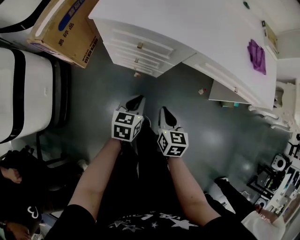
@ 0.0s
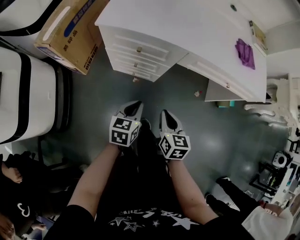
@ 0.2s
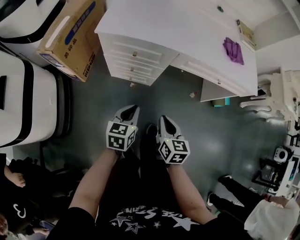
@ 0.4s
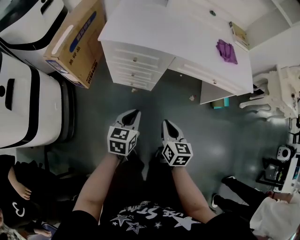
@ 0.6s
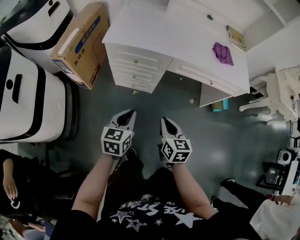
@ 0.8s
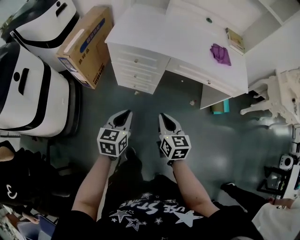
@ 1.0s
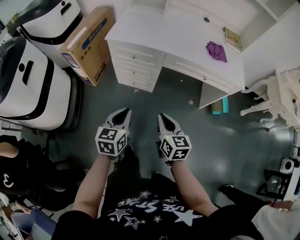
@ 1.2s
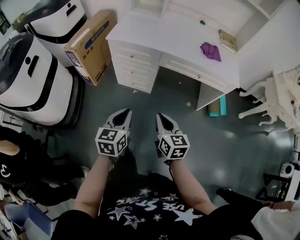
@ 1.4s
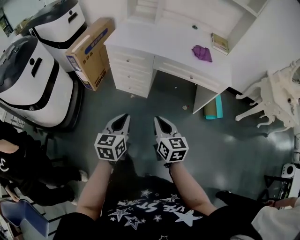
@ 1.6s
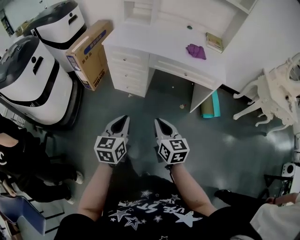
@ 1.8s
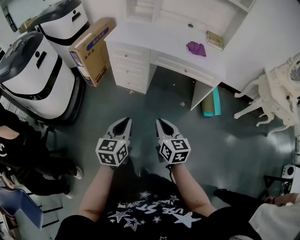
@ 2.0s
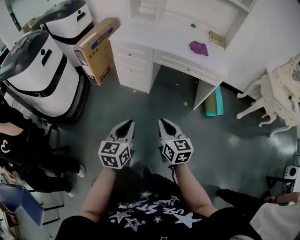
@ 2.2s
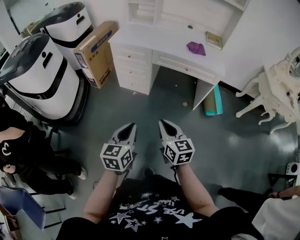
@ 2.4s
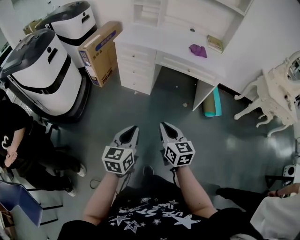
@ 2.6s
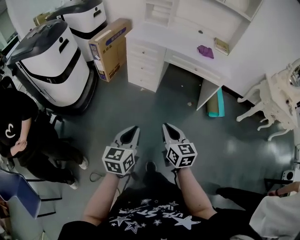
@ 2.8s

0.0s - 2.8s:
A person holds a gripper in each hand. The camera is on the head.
0.0s - 1.4s: The right gripper travels upward and backward by about 30 cm. Meanwhile the left gripper heads backward and upward, covering roughly 35 cm.
1.4s - 2.8s: Both grippers travel together backward, about 30 cm.

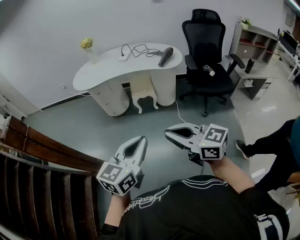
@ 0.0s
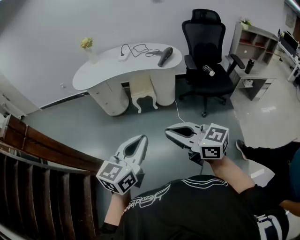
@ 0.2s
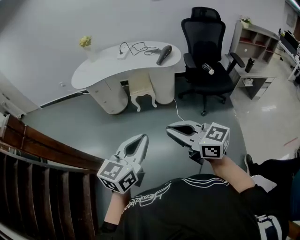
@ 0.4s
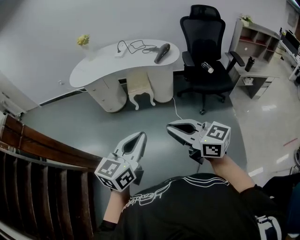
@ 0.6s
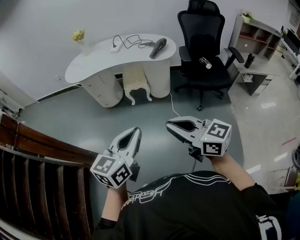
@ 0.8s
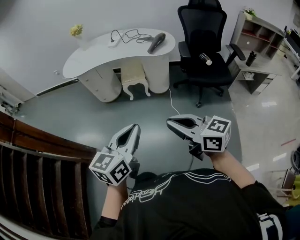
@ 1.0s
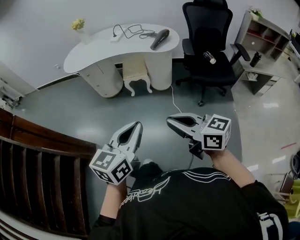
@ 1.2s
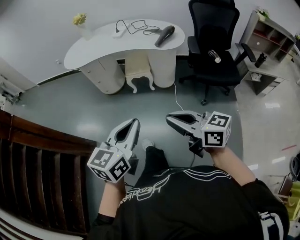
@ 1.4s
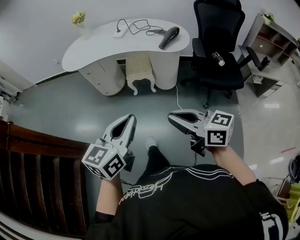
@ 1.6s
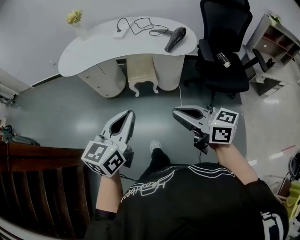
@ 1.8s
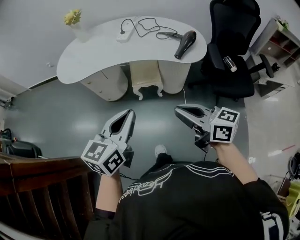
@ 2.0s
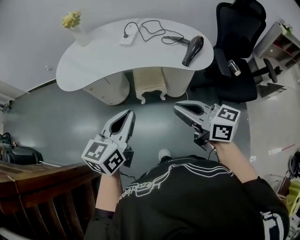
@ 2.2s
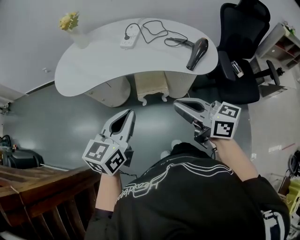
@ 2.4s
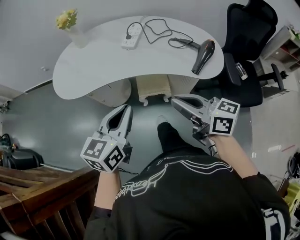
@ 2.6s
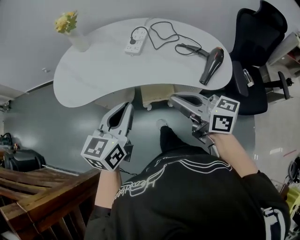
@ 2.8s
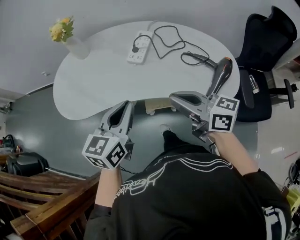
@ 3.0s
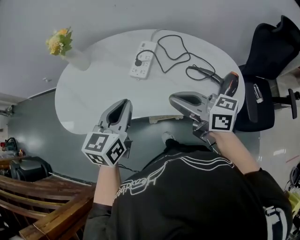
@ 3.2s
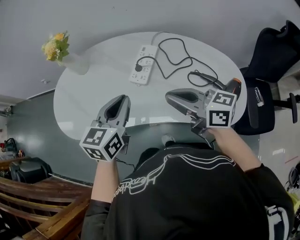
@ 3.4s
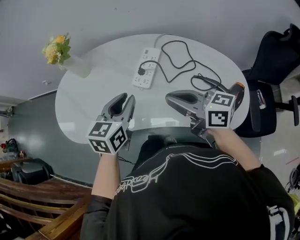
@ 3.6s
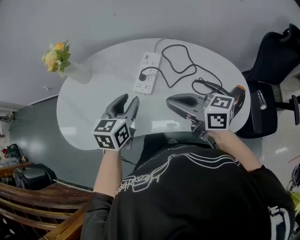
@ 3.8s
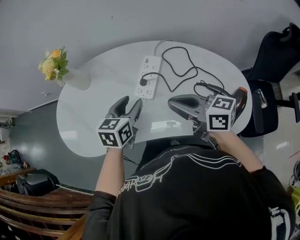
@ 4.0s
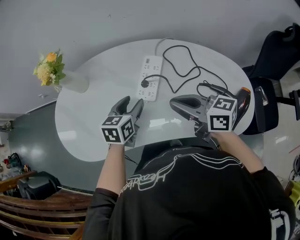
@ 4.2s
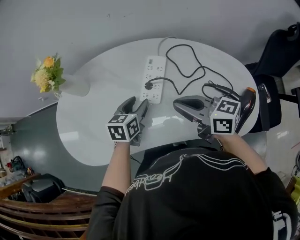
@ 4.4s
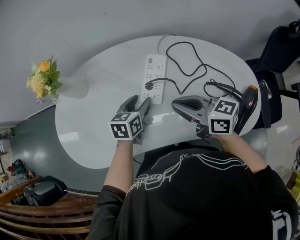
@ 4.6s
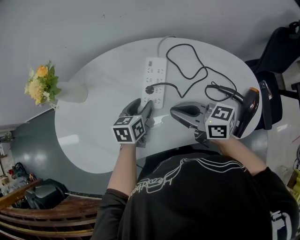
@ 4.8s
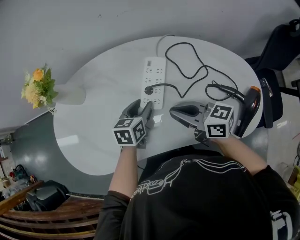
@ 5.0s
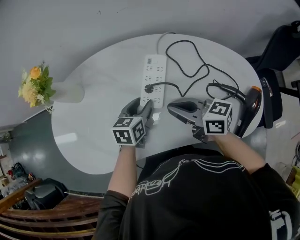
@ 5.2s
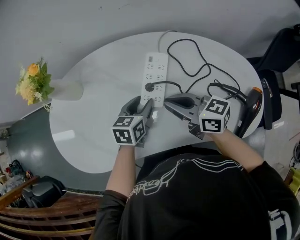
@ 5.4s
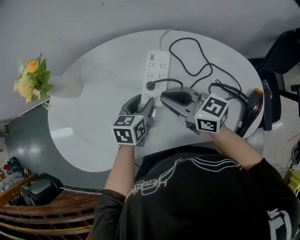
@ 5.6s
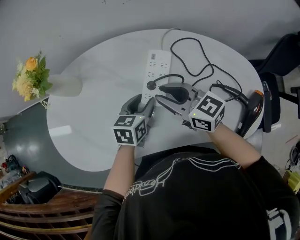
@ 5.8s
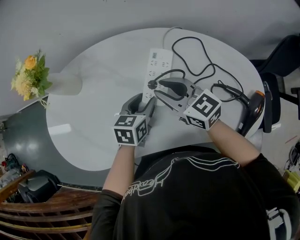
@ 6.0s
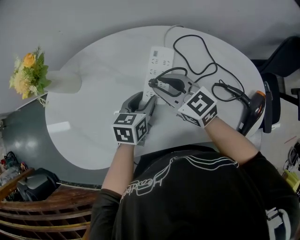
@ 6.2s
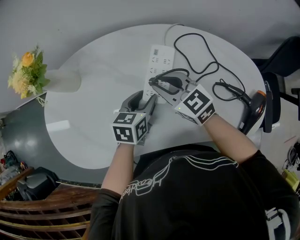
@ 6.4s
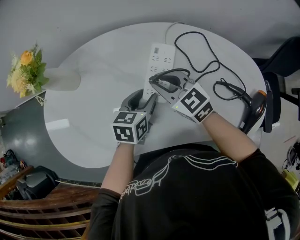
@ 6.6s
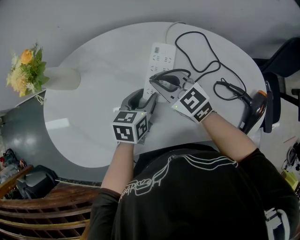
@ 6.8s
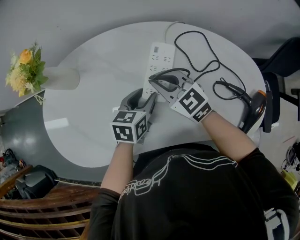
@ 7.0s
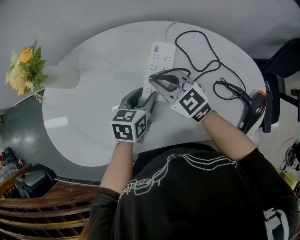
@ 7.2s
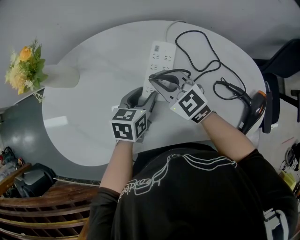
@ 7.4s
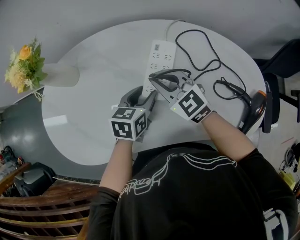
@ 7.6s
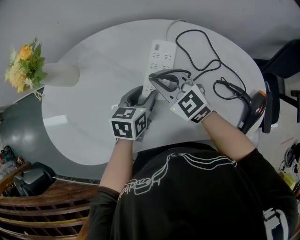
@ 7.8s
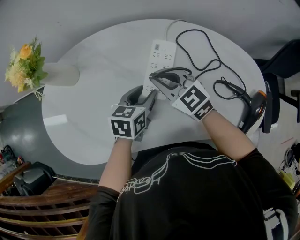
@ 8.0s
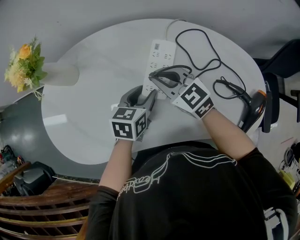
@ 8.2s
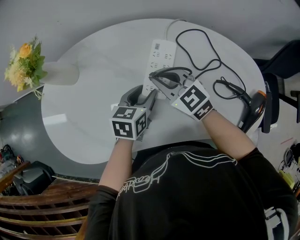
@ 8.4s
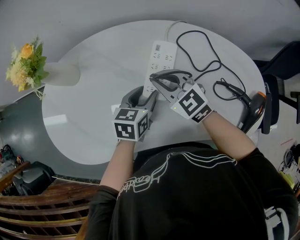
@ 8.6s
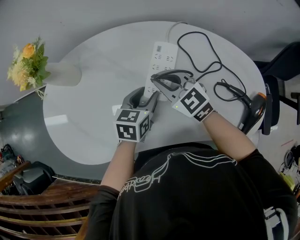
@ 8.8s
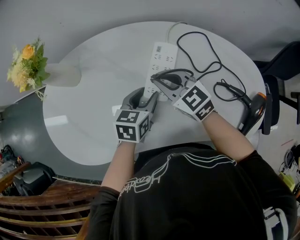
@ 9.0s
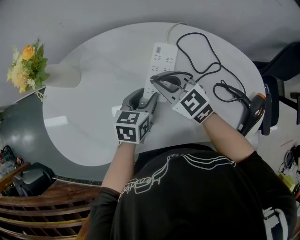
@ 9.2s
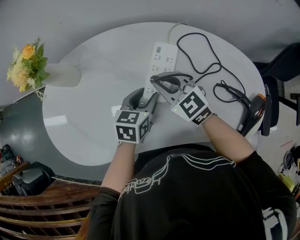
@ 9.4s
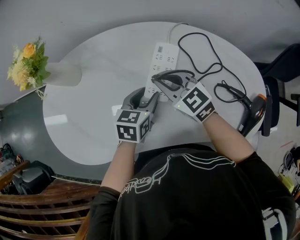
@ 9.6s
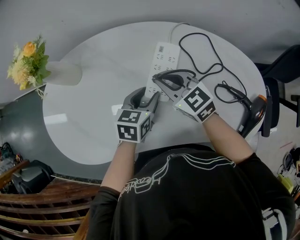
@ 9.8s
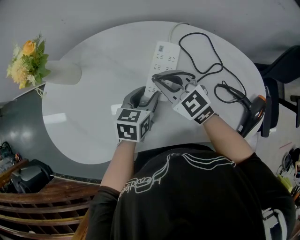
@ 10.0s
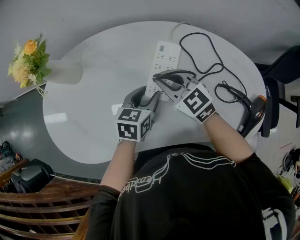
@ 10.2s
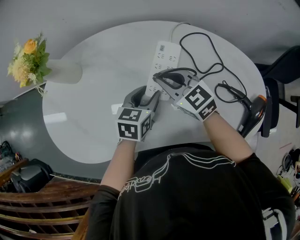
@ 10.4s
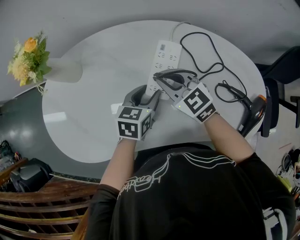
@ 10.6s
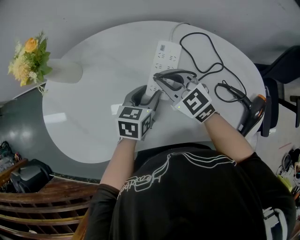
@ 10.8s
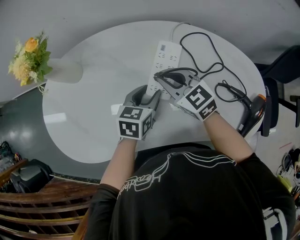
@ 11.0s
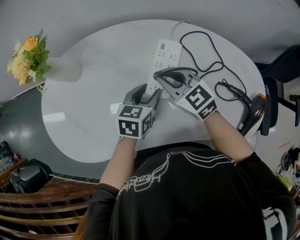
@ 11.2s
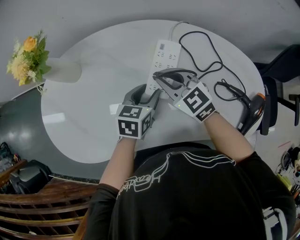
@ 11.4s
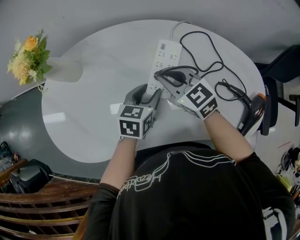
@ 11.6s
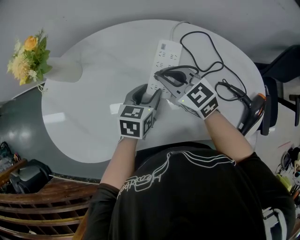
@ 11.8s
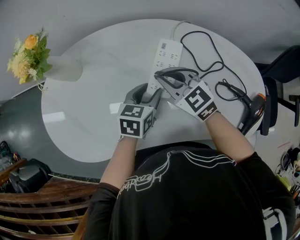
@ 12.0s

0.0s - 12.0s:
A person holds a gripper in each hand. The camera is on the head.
0.0s - 1.6s: The right gripper travels forward, to the right and downward by roughly 20 cm; the left gripper travels forward and to the right by approximately 15 cm.
1.6s - 3.0s: The pair of grippers is taken forward, approximately 60 cm.
3.0s - 4.4s: The right gripper heads forward, covering approximately 20 cm, while the left gripper shifts roughly 30 cm forward and downward, rotates roughly 20 degrees, and opens up.
4.4s - 6.0s: The right gripper heads forward, downward and to the left, covering roughly 15 cm, changes its angle by some 20 degrees, and opens its fingers.
6.0s - 7.6s: The right gripper swivels about 20 degrees.
7.6s - 12.0s: The grippers stay close to where they were, moving slightly.

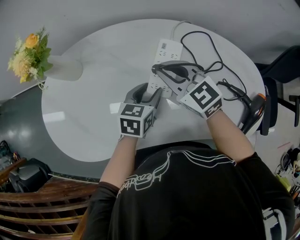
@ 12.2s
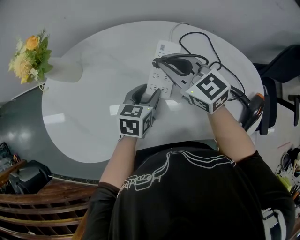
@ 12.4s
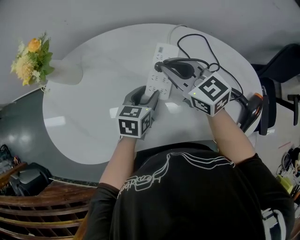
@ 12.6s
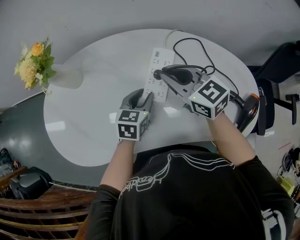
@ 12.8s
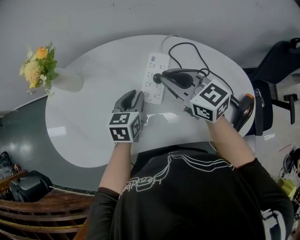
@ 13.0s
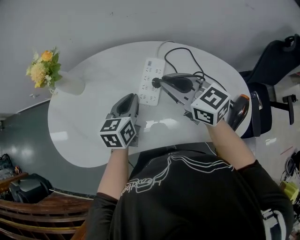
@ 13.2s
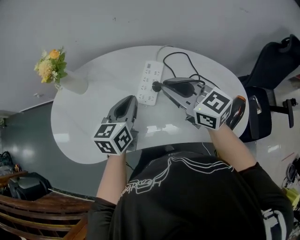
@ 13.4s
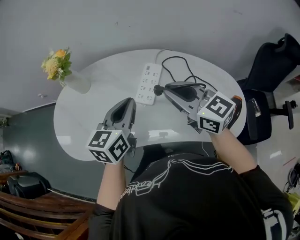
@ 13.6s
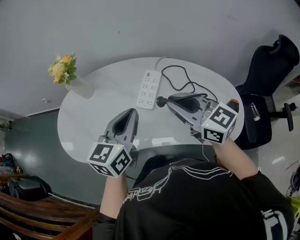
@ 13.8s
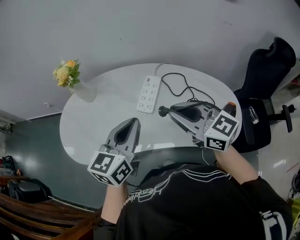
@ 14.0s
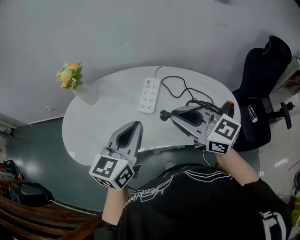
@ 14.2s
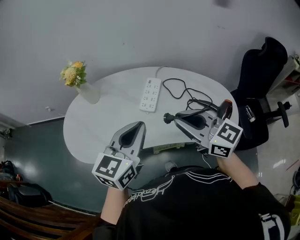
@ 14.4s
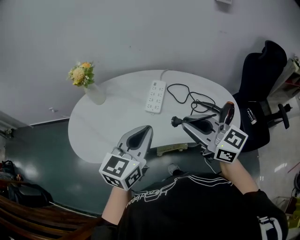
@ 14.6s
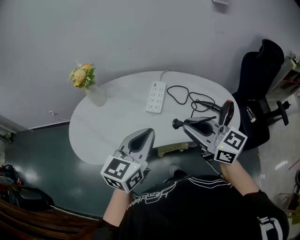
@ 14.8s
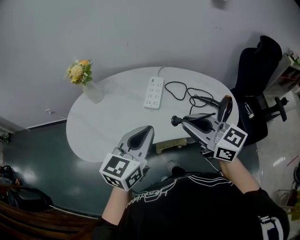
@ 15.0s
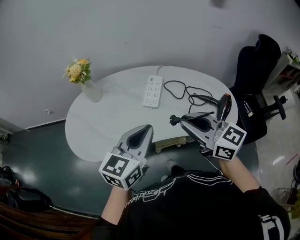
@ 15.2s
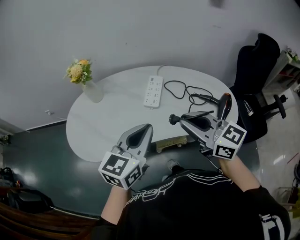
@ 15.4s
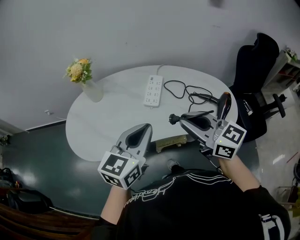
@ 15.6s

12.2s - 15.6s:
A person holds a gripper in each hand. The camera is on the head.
12.2s - 13.8s: The left gripper is displaced upward and backward by roughly 25 cm, rotates some 30 degrees, and closes up. The right gripper moves backward, upward and to the right, approximately 25 cm, and swivels approximately 20 degrees.
13.8s - 15.6s: Both grippers move backward, about 15 cm.

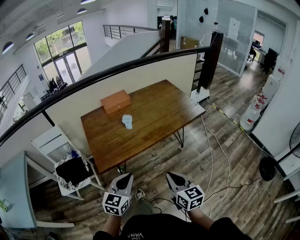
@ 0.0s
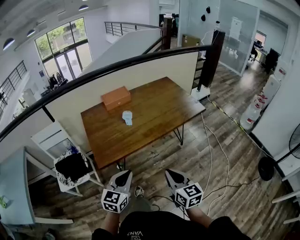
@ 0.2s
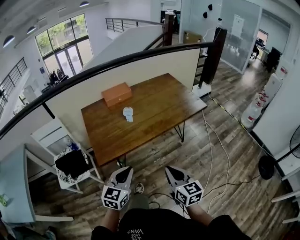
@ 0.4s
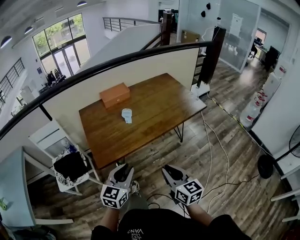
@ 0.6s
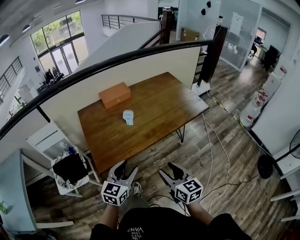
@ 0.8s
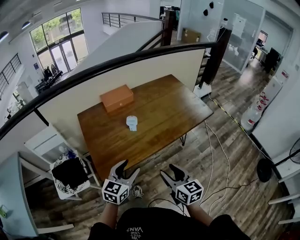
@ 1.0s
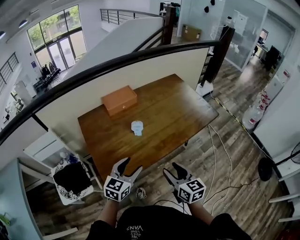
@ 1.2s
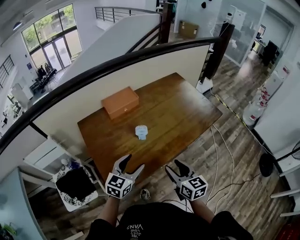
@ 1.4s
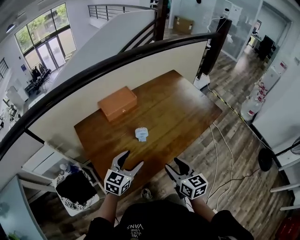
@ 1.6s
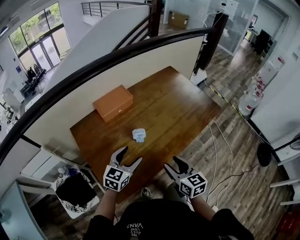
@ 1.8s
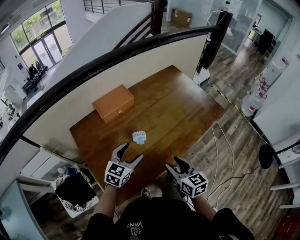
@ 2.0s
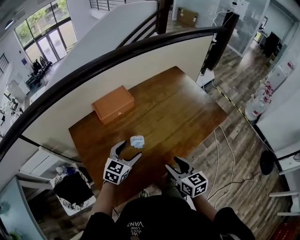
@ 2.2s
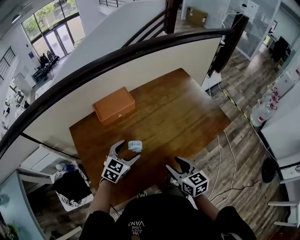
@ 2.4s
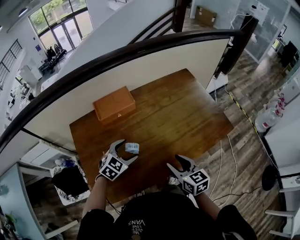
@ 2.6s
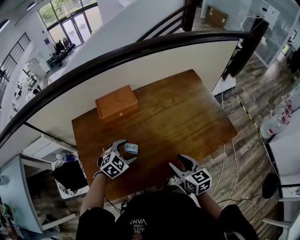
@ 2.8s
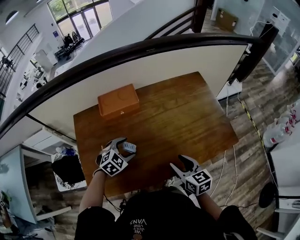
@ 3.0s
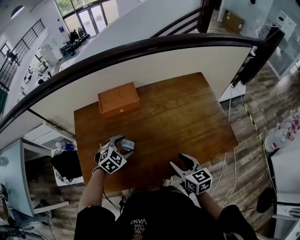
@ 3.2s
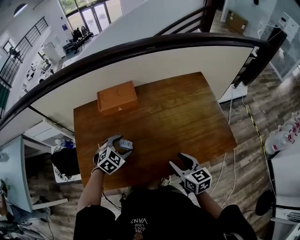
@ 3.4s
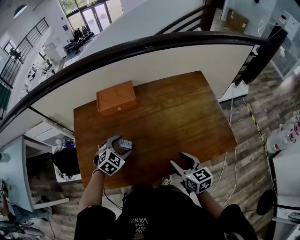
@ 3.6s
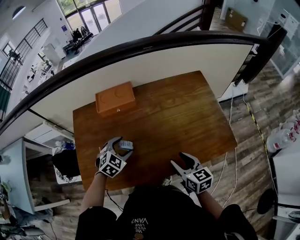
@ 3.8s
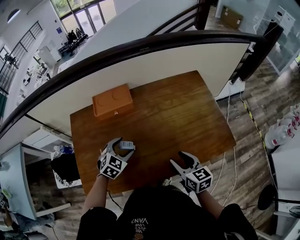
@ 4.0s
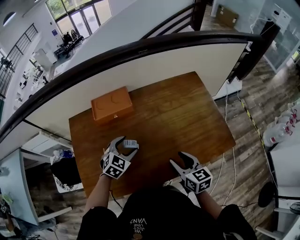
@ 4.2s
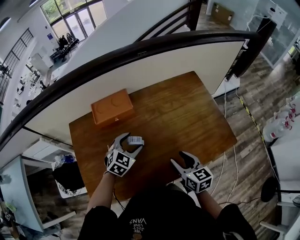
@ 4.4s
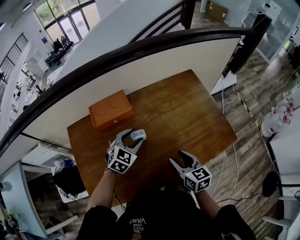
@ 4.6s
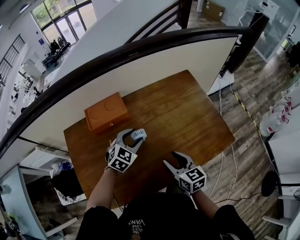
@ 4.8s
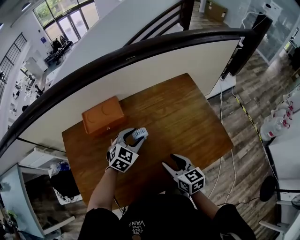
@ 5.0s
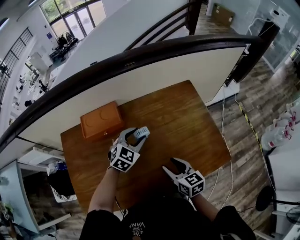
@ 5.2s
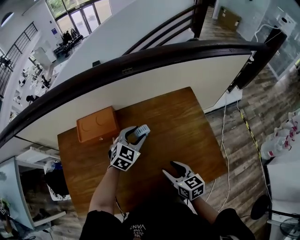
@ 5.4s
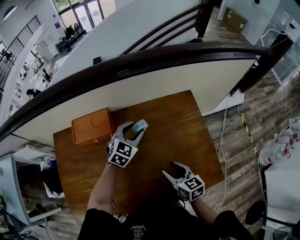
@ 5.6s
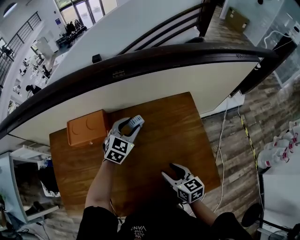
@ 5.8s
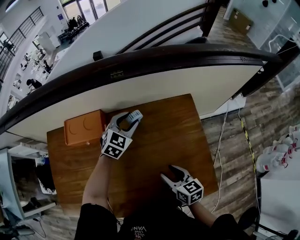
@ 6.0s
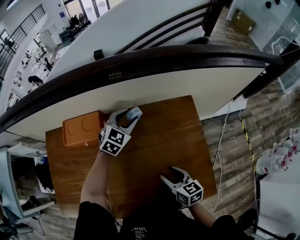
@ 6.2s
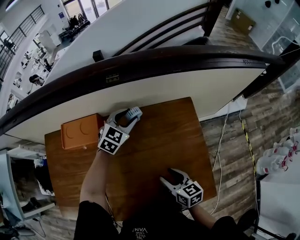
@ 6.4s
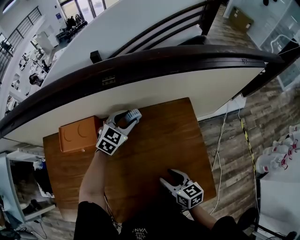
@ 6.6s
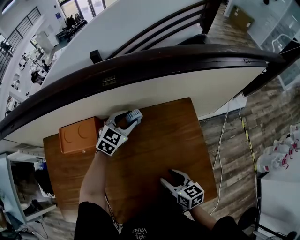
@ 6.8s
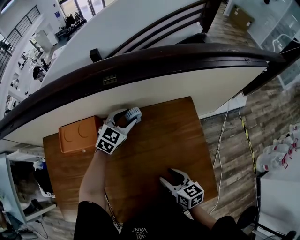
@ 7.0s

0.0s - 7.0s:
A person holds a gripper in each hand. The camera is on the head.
0.0s - 1.4s: The left gripper heads forward, covering about 25 cm, and opens, while the right gripper is displaced forward and to the left by approximately 25 cm, and opens up.
1.4s - 2.8s: The left gripper moves forward and downward, some 20 cm, and angles its fingers downward, by approximately 30 degrees, while the right gripper shifts approximately 20 cm forward.
2.8s - 4.2s: The left gripper ends up approximately 5 cm from where it was, while the right gripper shifts approximately 5 cm to the right.
4.2s - 5.6s: The right gripper is displaced forward and to the right by roughly 15 cm. The left gripper is displaced forward and to the right by some 25 cm, and closes its fingers.
5.6s - 7.0s: The right gripper shifts by some 5 cm. Meanwhile the left gripper goes about 10 cm forward.
